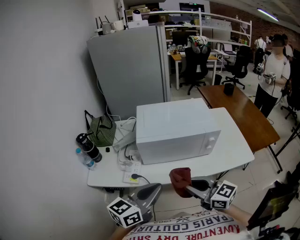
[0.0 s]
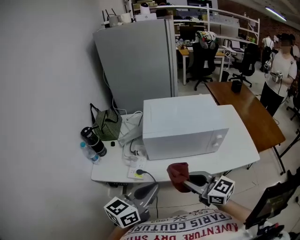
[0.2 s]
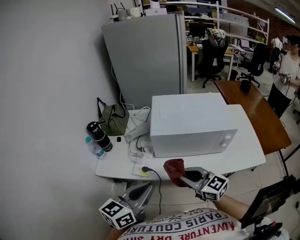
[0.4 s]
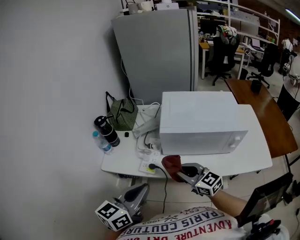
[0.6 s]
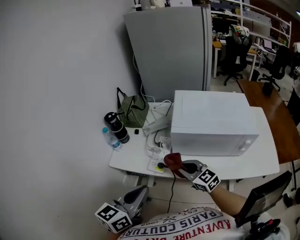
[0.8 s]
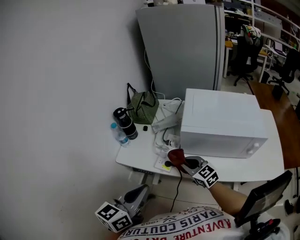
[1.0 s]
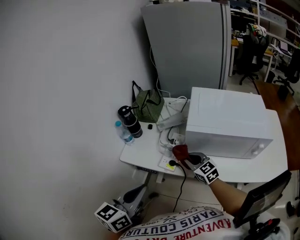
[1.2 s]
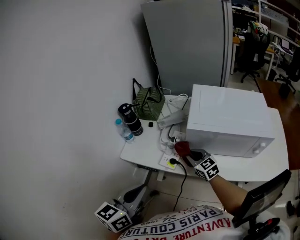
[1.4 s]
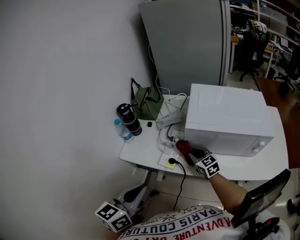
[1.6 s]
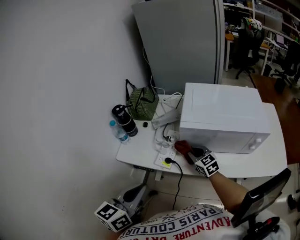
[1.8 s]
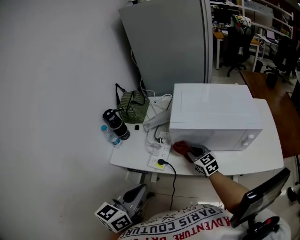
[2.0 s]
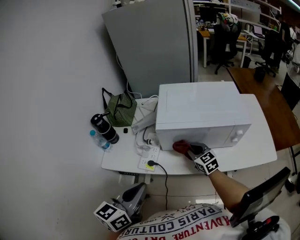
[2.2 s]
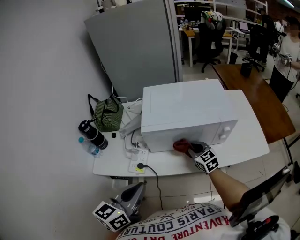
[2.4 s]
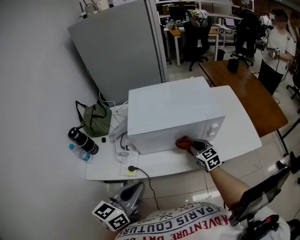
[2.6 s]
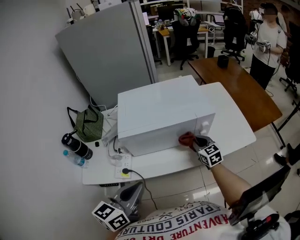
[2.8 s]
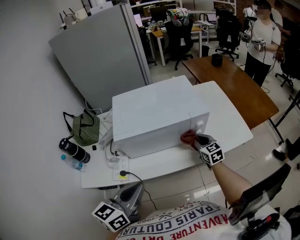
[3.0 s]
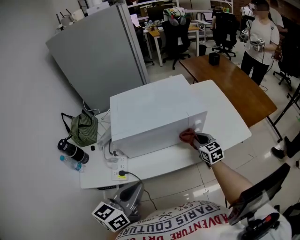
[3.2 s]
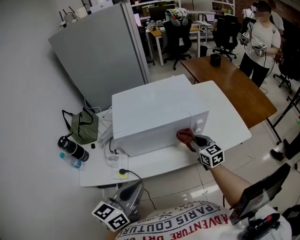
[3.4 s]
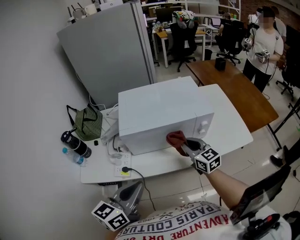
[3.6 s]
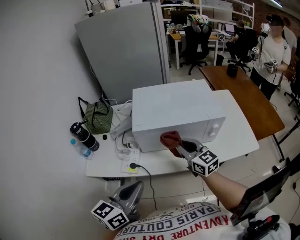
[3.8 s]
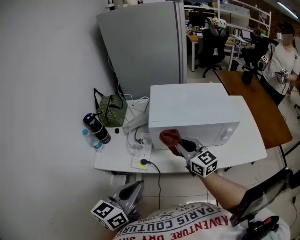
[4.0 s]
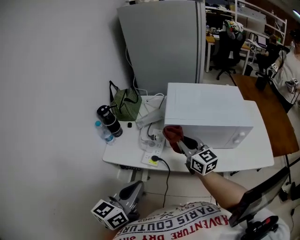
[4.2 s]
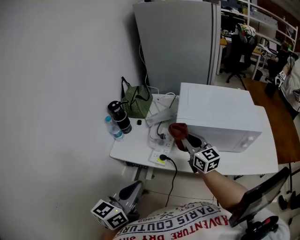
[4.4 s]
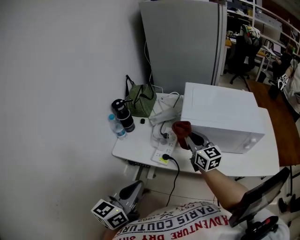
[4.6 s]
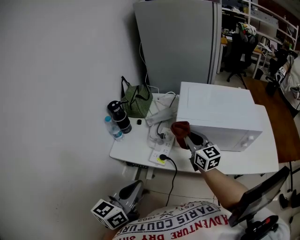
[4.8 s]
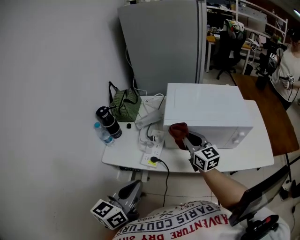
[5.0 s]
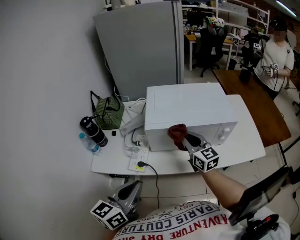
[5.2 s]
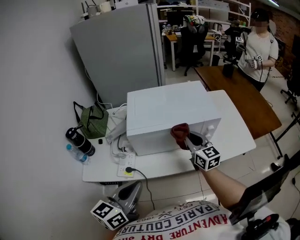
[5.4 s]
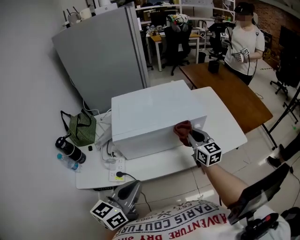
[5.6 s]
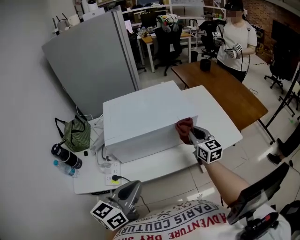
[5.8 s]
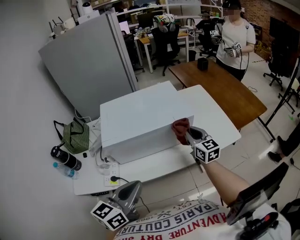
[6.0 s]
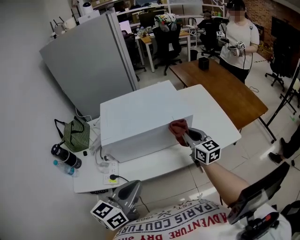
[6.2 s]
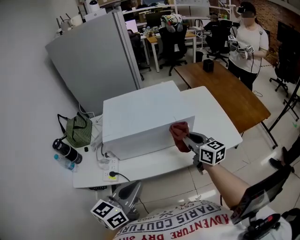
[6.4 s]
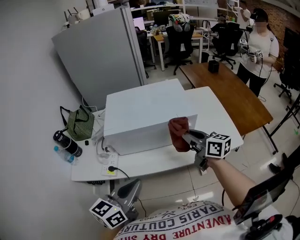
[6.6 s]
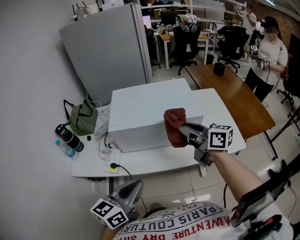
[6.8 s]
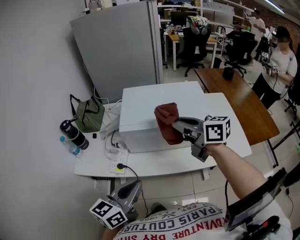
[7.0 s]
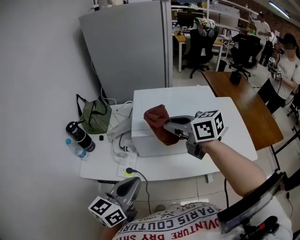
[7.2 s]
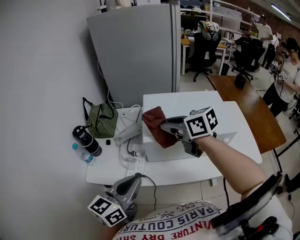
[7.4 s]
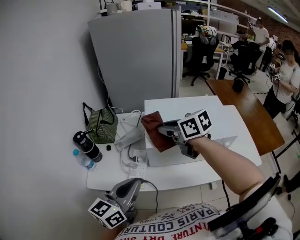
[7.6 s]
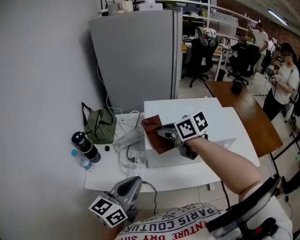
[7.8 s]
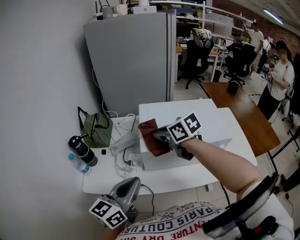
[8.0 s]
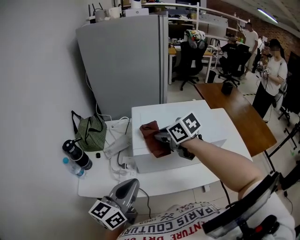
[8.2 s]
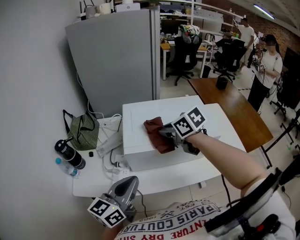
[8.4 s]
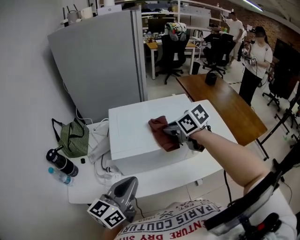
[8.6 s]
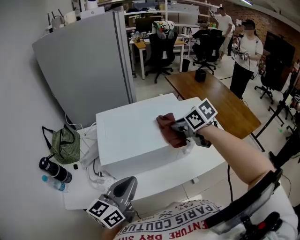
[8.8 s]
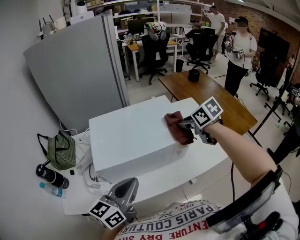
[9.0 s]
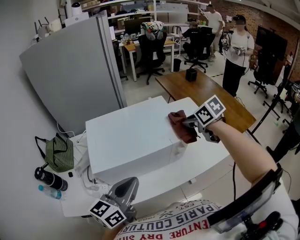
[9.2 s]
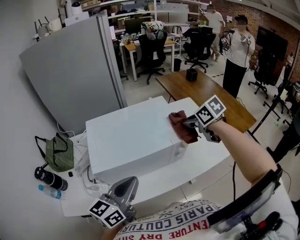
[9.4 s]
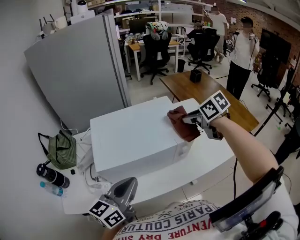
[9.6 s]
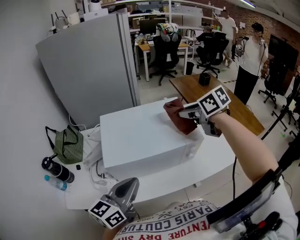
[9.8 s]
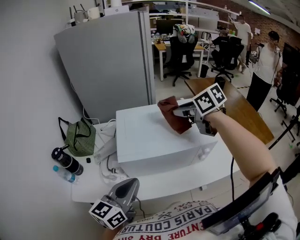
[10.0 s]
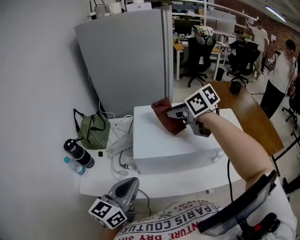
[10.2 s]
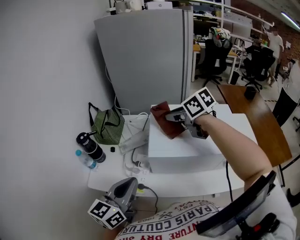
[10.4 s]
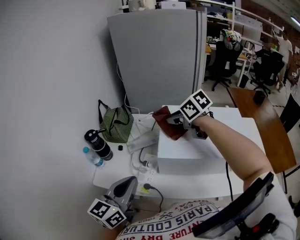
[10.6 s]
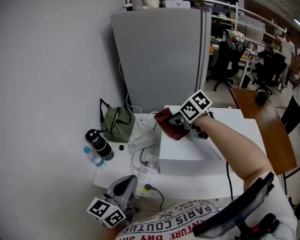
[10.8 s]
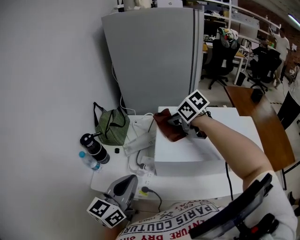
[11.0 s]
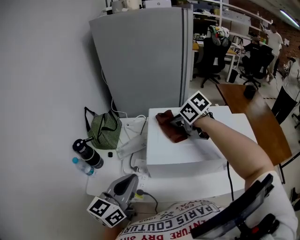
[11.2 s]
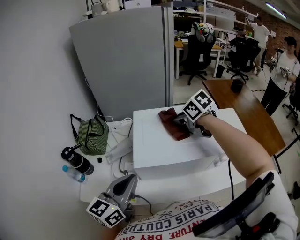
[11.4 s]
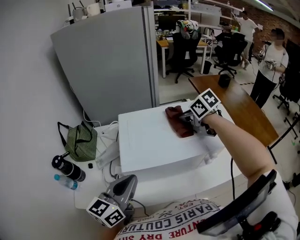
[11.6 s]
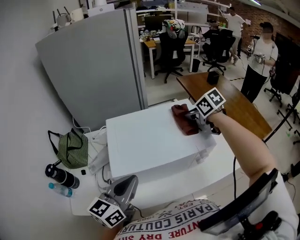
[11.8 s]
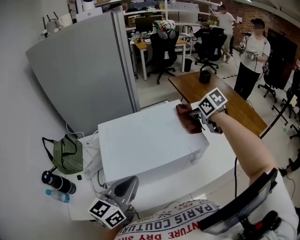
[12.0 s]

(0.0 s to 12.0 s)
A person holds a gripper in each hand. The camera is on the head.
0.0 s - 1.6 s: The left gripper shifts approximately 20 cm to the left, and rotates about 30 degrees. The right gripper shifts some 30 cm forward, downward and to the left.
1.6 s - 3.0 s: The left gripper changes place by approximately 20 cm, and swivels roughly 30 degrees; the right gripper ends up roughly 35 cm from where it was, and swivels about 40 degrees.
3.0 s - 4.4 s: The right gripper changes place by roughly 35 cm, and rotates roughly 30 degrees. The left gripper shifts by roughly 20 cm, and changes its angle by approximately 20 degrees.
4.4 s - 6.0 s: The right gripper ends up roughly 35 cm from where it was, and turns by roughly 30 degrees. The left gripper moves some 25 cm, and changes its angle by about 30 degrees.
6.0 s - 7.6 s: The right gripper changes place by about 35 cm, and swivels roughly 50 degrees, while the left gripper changes place by roughly 20 cm.
7.6 s - 9.0 s: The left gripper goes approximately 20 cm to the right. The right gripper shifts some 35 cm to the right, and rotates roughly 30 degrees.
9.0 s - 10.4 s: The right gripper shifts by about 35 cm, and swivels some 30 degrees. Meanwhile the left gripper shifts by some 20 cm, and rotates roughly 30 degrees.
10.4 s - 12.0 s: The right gripper shifts by approximately 35 cm, and turns by approximately 40 degrees; the left gripper moves approximately 20 cm, and rotates approximately 20 degrees.

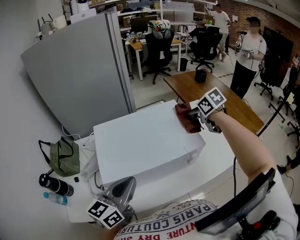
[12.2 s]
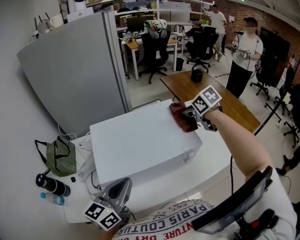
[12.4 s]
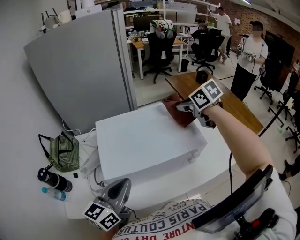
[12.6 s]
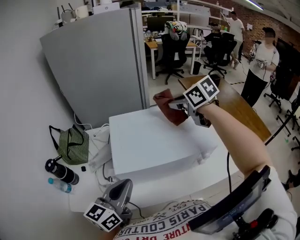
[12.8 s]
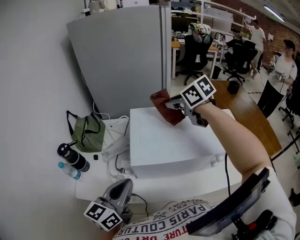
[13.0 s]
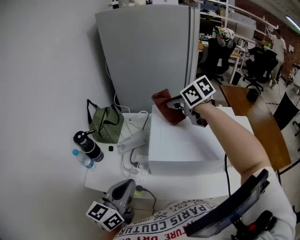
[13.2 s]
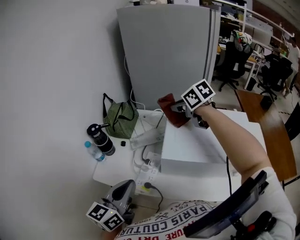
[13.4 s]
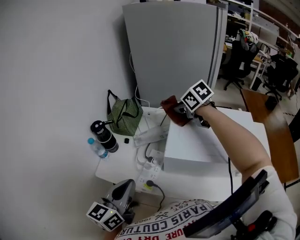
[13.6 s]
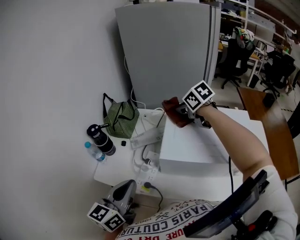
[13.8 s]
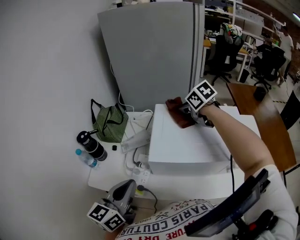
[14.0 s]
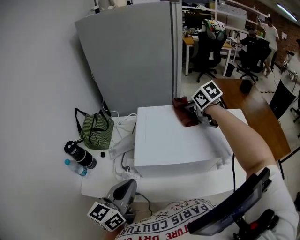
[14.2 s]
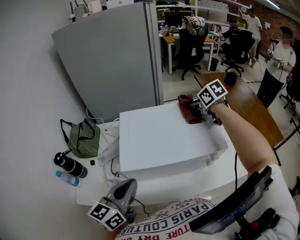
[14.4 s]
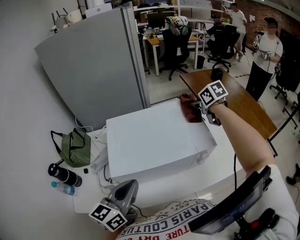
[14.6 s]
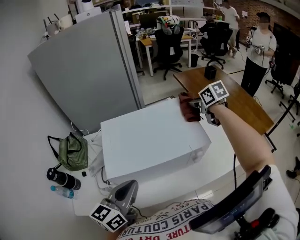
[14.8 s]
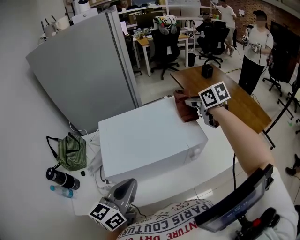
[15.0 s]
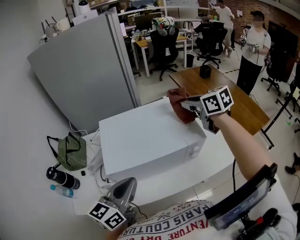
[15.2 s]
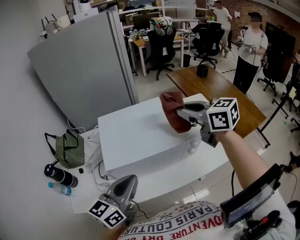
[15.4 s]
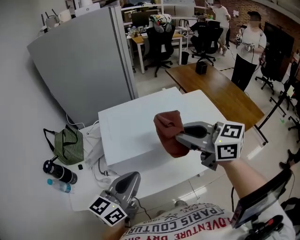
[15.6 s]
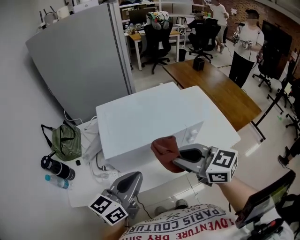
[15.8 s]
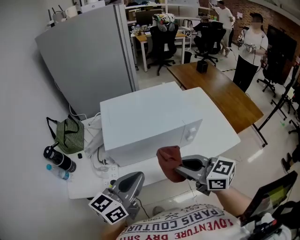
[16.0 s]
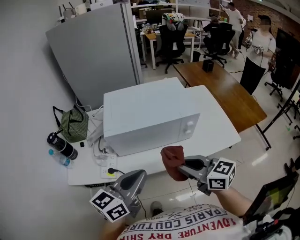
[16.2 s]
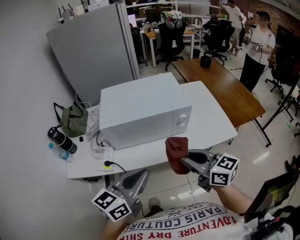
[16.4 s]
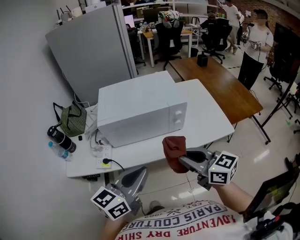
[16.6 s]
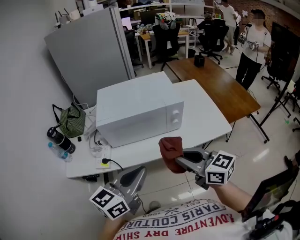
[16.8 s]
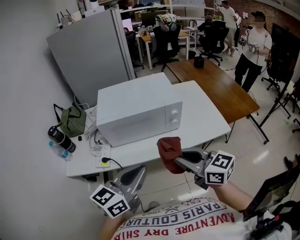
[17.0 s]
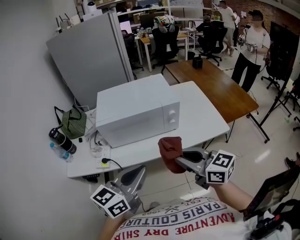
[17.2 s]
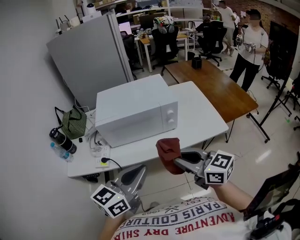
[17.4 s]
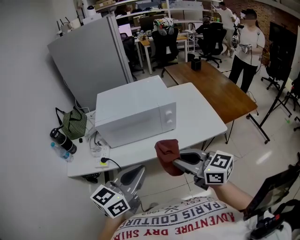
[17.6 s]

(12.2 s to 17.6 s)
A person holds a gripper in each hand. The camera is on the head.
12.2 s - 13.6 s: The left gripper changes place by approximately 25 cm, and swivels about 40 degrees. Meanwhile the right gripper moves about 10 cm upward and comes back, and rotates roughly 40 degrees.
13.6 s - 15.0 s: The left gripper moves some 20 cm, and rotates approximately 30 degrees, while the right gripper moves some 40 cm, and swivels some 40 degrees.
15.0 s - 16.2 s: The right gripper moves backward, about 40 cm, and rotates roughly 30 degrees. The left gripper moves backward, about 15 cm.
16.2 s - 17.6 s: Both grippers move backward and to the right, about 15 cm.

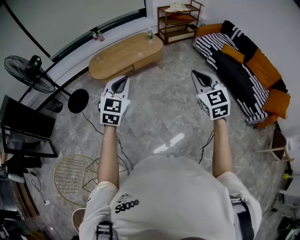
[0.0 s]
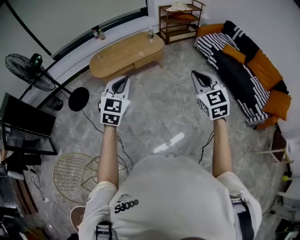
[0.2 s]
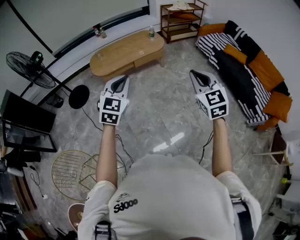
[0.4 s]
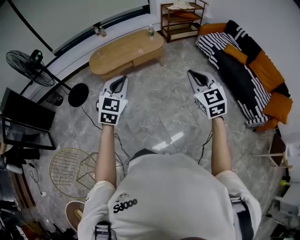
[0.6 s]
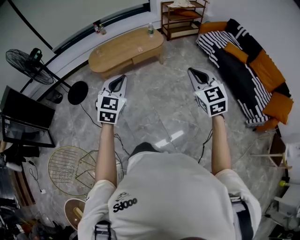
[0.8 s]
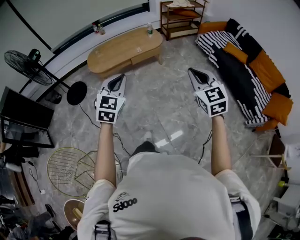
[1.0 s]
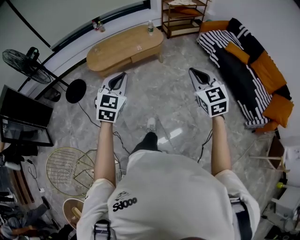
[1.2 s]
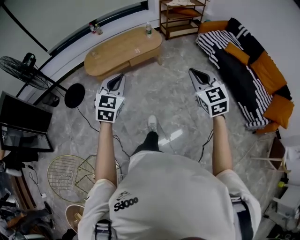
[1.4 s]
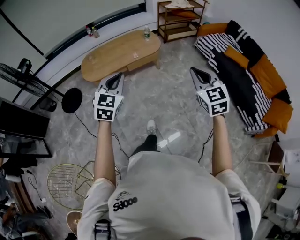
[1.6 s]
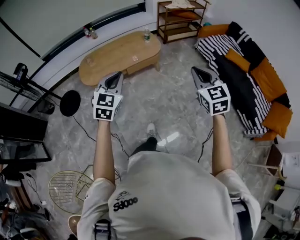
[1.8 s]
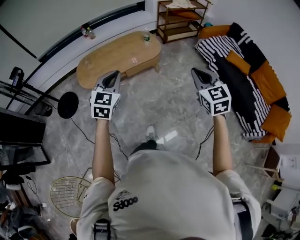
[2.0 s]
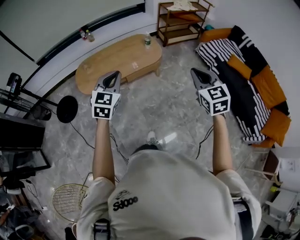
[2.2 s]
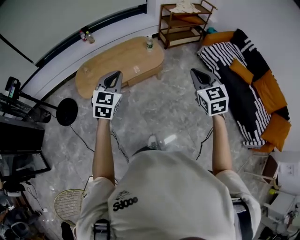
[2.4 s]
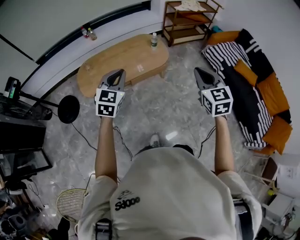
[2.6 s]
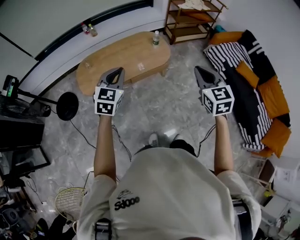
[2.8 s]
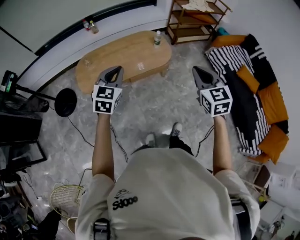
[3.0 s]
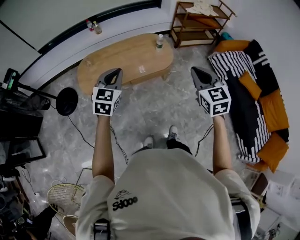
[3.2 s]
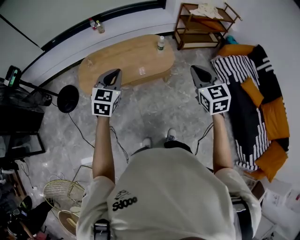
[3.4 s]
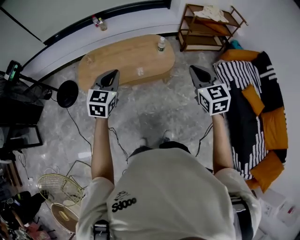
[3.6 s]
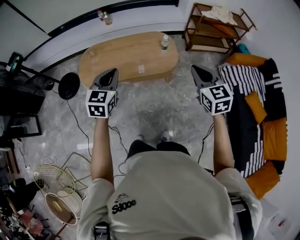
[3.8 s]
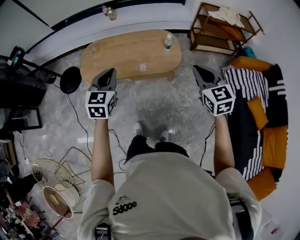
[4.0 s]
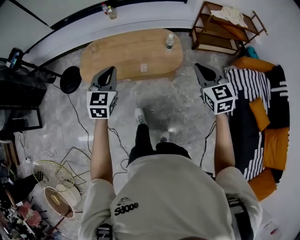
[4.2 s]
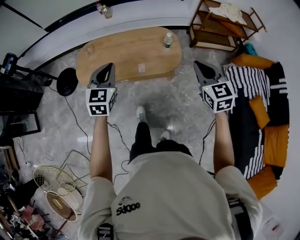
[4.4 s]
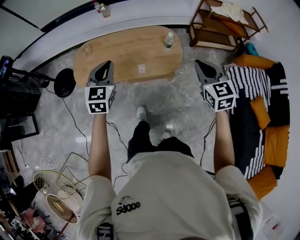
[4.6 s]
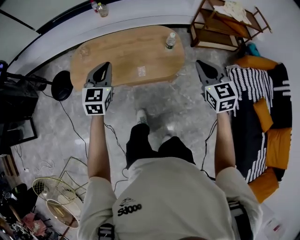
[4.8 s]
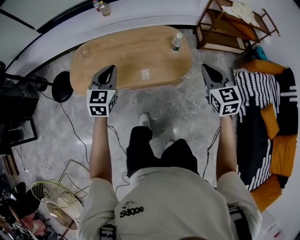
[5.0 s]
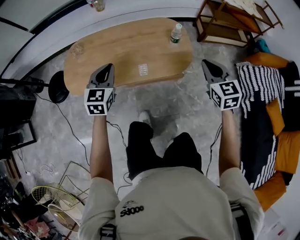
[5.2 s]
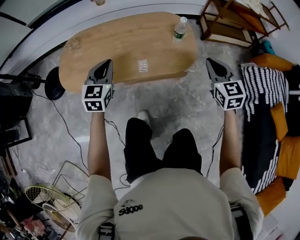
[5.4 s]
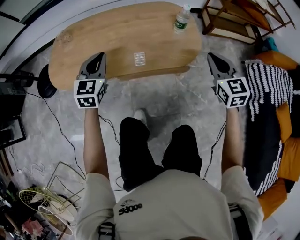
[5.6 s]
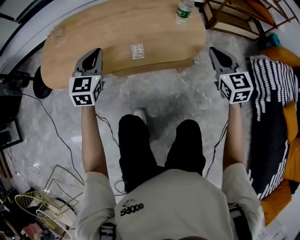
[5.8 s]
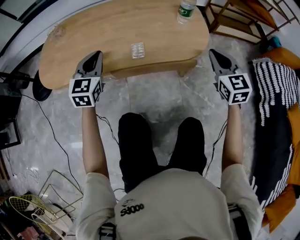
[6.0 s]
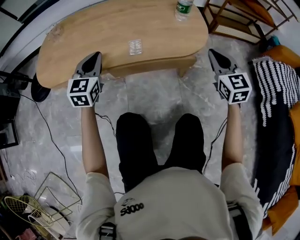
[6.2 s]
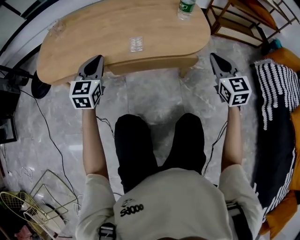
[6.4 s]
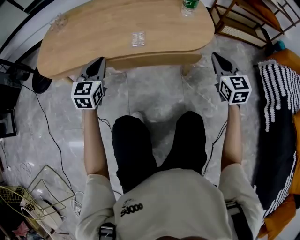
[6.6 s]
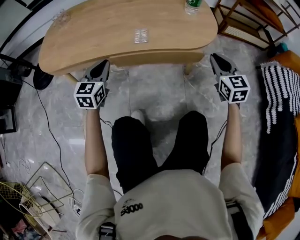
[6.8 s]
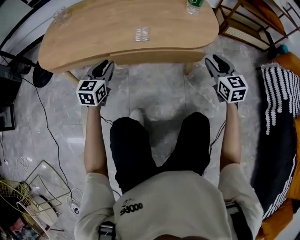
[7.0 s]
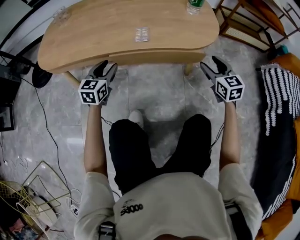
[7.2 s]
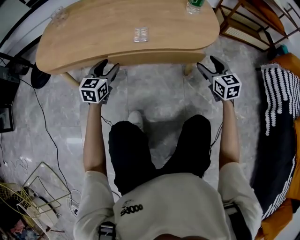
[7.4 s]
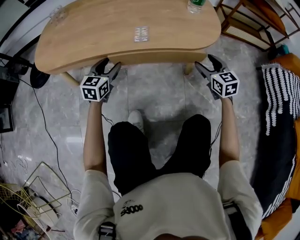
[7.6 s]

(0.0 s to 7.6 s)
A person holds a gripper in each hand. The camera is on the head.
0.0 s - 1.6 s: The right gripper heads forward and to the right, covering roughly 15 cm. Meanwhile the left gripper travels forward by about 15 cm.
1.6 s - 3.0 s: The two grippers go roughly 35 cm forward.
3.0 s - 4.6 s: The right gripper shifts about 25 cm forward and to the right, while the left gripper moves forward and downward, approximately 20 cm, and rotates about 20 degrees.
4.6 s - 6.0 s: The two grippers go roughly 40 cm downward.
6.0 s - 7.6 s: Both grippers move downward, approximately 20 cm. The right gripper opens; the left gripper opens.
